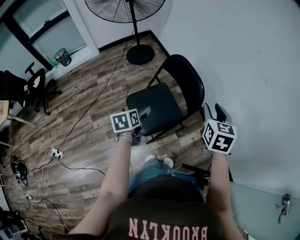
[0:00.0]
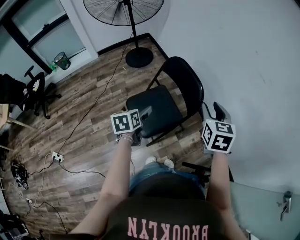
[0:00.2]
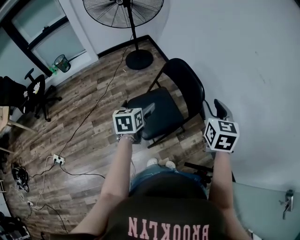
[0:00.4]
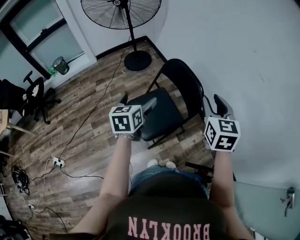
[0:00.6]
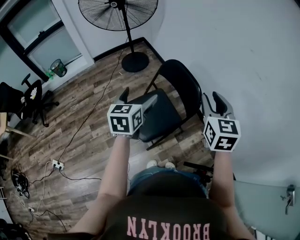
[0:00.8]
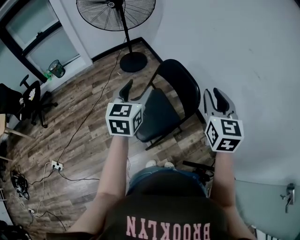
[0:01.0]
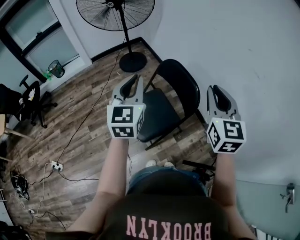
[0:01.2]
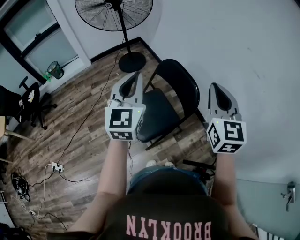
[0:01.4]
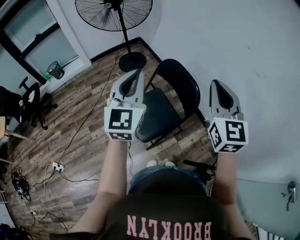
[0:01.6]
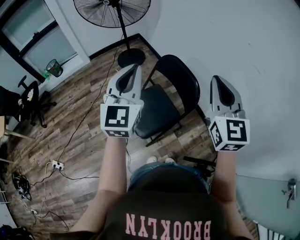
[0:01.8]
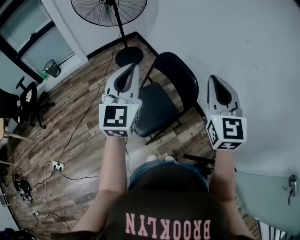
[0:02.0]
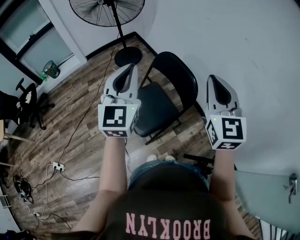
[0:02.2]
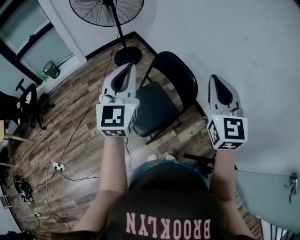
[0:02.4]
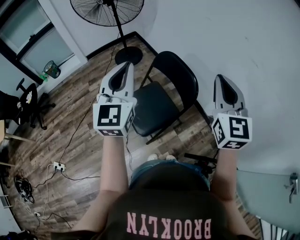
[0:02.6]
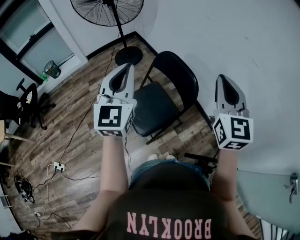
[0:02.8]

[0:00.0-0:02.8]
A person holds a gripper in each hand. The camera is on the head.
0:00.0 to 0:01.4: The right gripper heads upward, covering roughly 15 cm, and swivels about 30 degrees, while the left gripper goes some 25 cm upward, tilts its fingers roughly 40 degrees upward, and closes its fingers.
0:01.4 to 0:02.8: The grippers stay close to where they were, moving slightly.

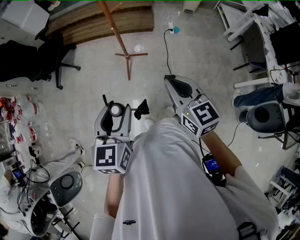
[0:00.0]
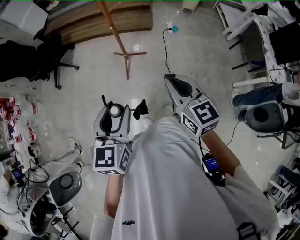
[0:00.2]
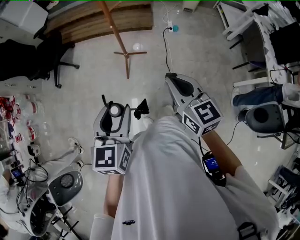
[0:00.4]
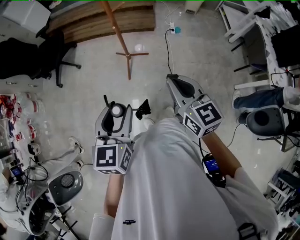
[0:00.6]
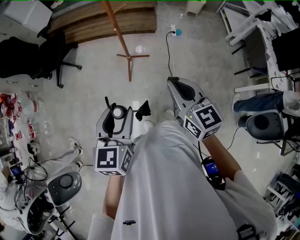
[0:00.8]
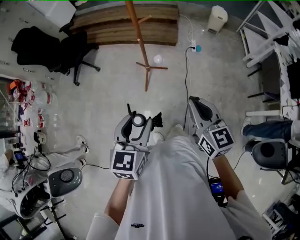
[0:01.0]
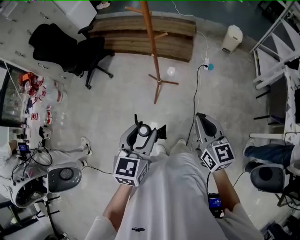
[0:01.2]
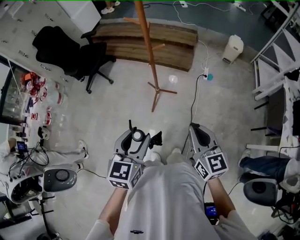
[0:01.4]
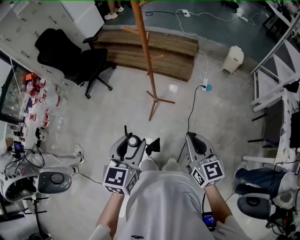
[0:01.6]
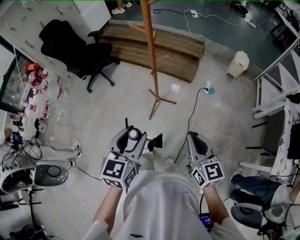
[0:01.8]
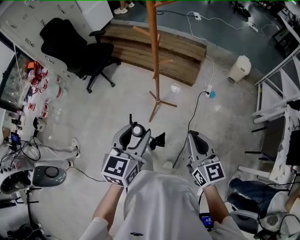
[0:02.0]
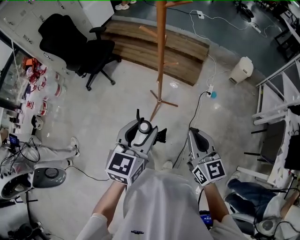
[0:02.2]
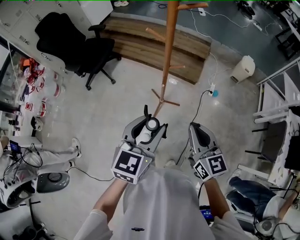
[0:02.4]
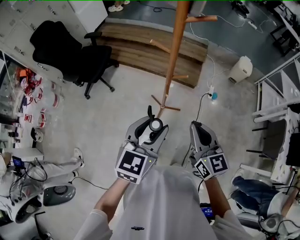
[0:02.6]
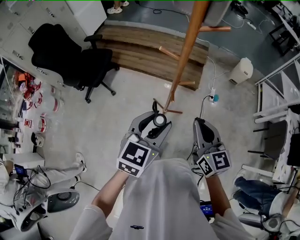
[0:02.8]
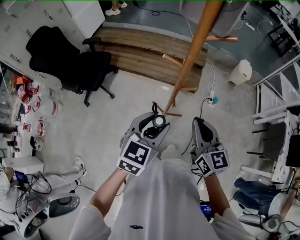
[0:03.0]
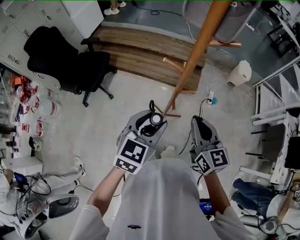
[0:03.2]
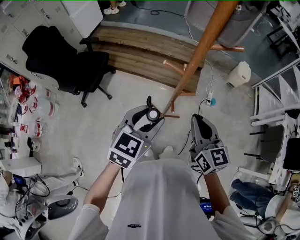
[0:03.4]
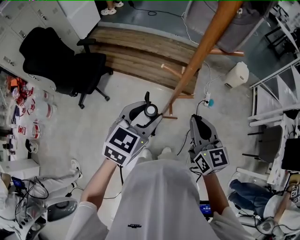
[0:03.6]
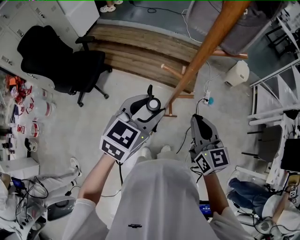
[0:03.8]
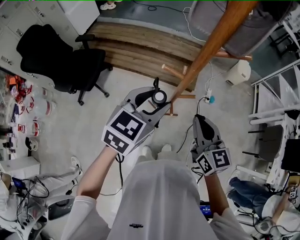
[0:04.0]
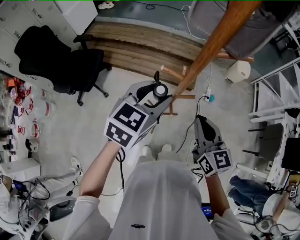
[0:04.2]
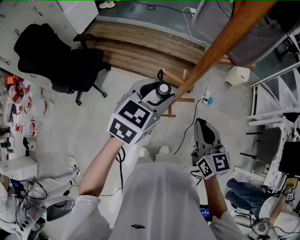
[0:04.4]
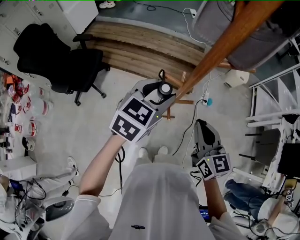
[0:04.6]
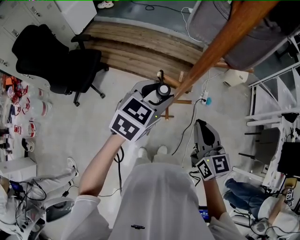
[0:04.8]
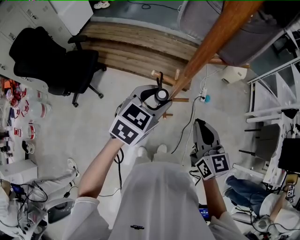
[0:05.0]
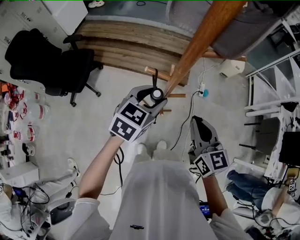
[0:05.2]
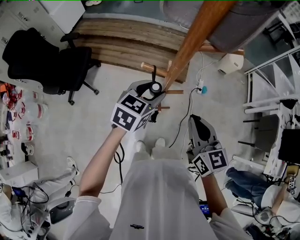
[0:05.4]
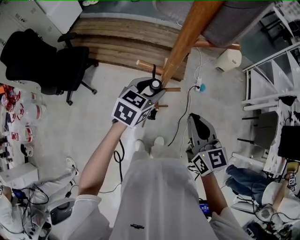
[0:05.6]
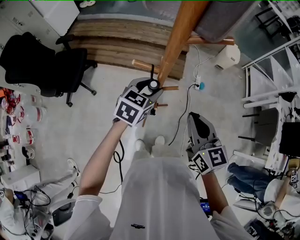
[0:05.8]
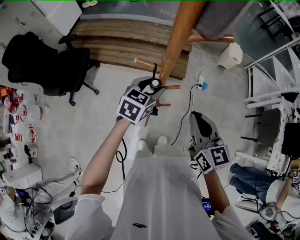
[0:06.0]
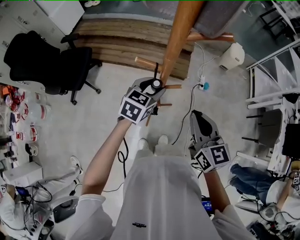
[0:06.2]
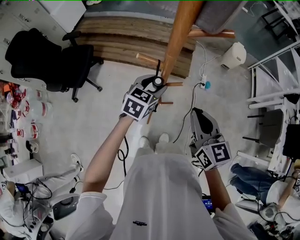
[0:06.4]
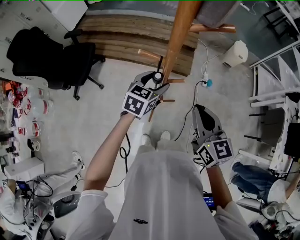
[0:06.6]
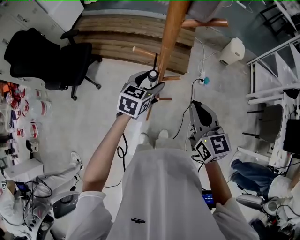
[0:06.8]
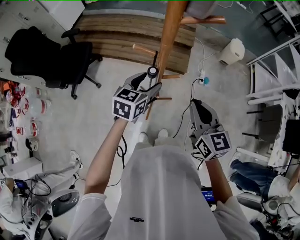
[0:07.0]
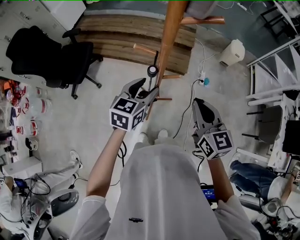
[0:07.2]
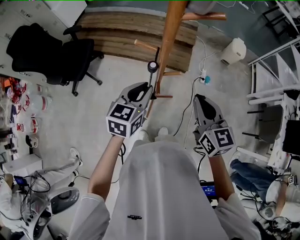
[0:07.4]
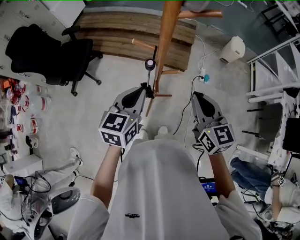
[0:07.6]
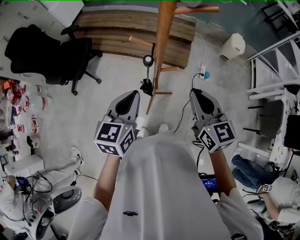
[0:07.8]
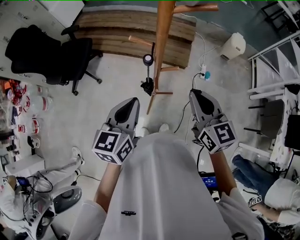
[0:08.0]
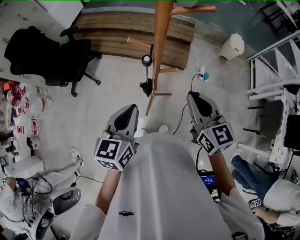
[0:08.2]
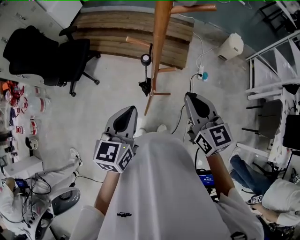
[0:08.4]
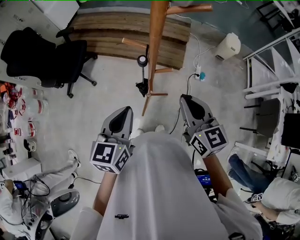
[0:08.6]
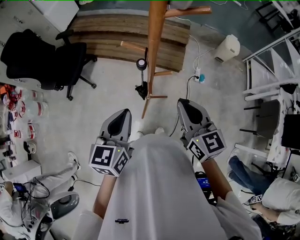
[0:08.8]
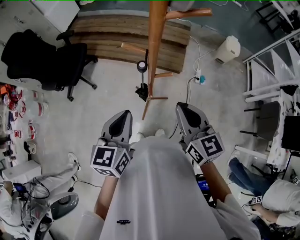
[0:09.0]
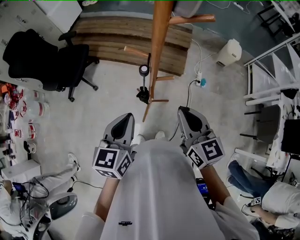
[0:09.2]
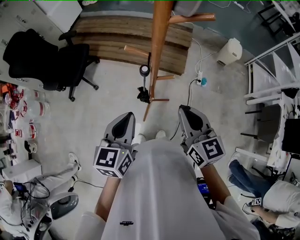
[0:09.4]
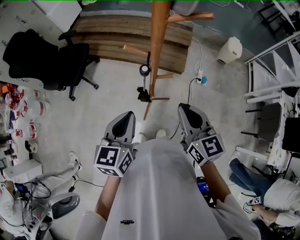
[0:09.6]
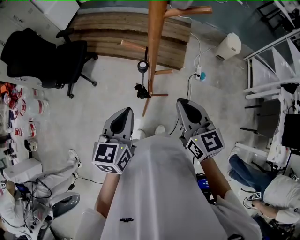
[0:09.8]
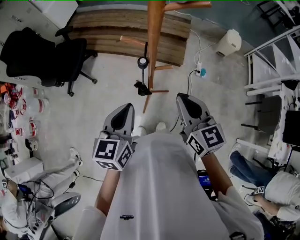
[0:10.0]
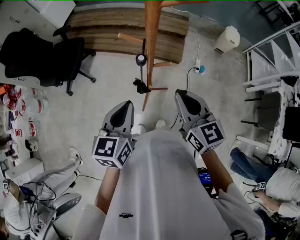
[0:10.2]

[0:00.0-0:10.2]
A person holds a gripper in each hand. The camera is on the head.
0:00.0 to 0:01.4: The right gripper goes about 10 cm to the right and forward. Meanwhile the left gripper heads forward and to the right, covering roughly 10 cm.
0:01.4 to 0:03.0: The left gripper heads forward, covering about 35 cm. The right gripper heads forward and to the left, covering approximately 35 cm.
0:03.0 to 0:04.4: The right gripper is displaced forward by about 10 cm, while the left gripper moves forward, approximately 15 cm.
0:04.4 to 0:05.8: The left gripper moves downward and to the right, some 15 cm.
0:05.8 to 0:07.2: The left gripper heads backward, covering roughly 5 cm.
0:07.2 to 0:08.8: The left gripper heads backward, upward and to the left, covering some 15 cm, and closes its fingers.
0:08.8 to 0:10.2: The grippers stay close to where they were, moving slightly.

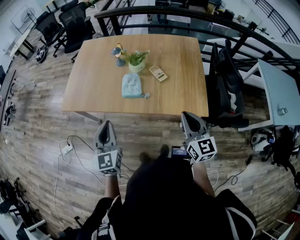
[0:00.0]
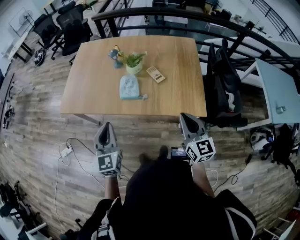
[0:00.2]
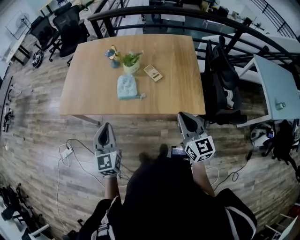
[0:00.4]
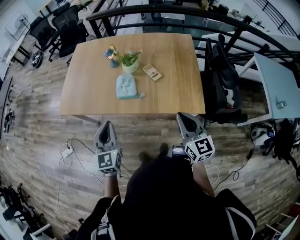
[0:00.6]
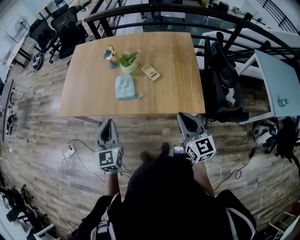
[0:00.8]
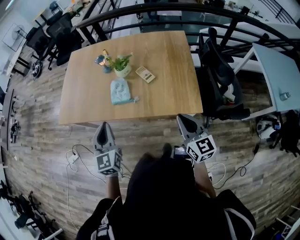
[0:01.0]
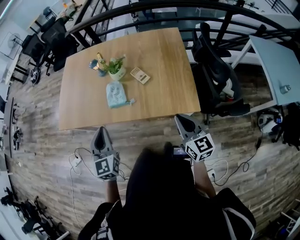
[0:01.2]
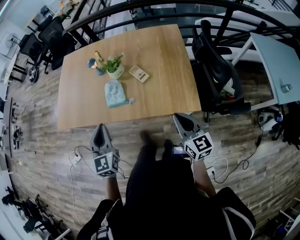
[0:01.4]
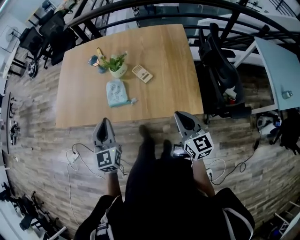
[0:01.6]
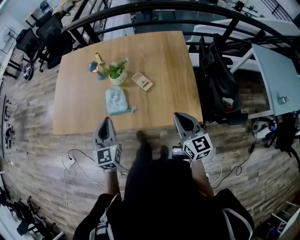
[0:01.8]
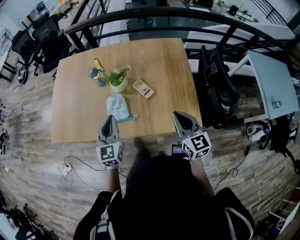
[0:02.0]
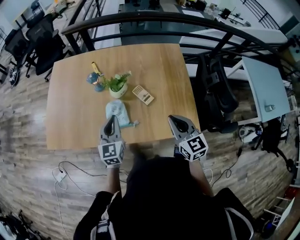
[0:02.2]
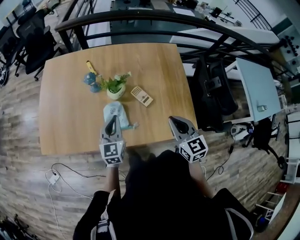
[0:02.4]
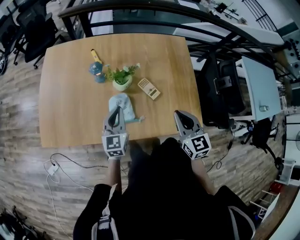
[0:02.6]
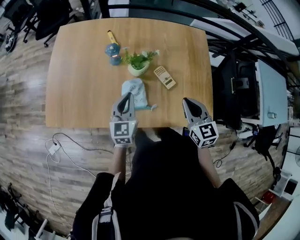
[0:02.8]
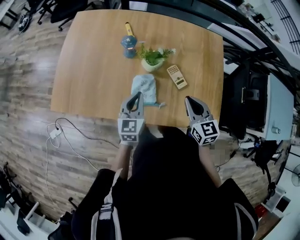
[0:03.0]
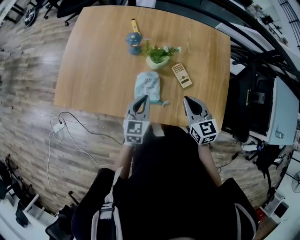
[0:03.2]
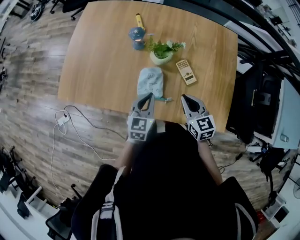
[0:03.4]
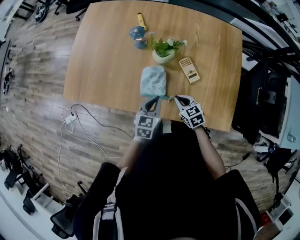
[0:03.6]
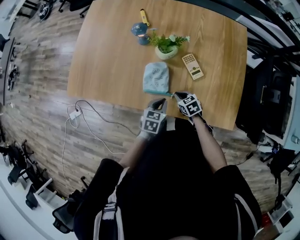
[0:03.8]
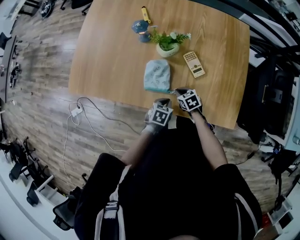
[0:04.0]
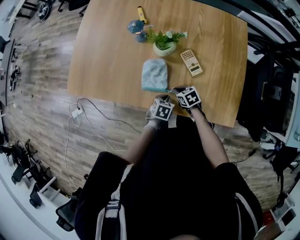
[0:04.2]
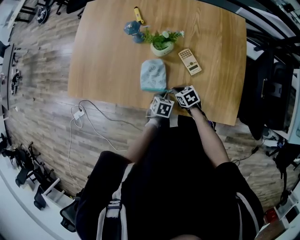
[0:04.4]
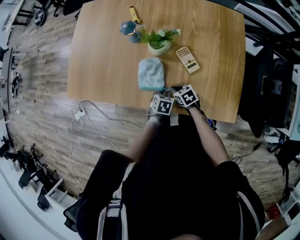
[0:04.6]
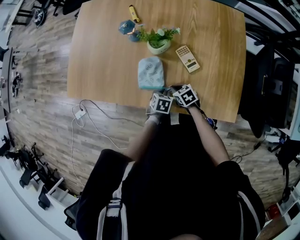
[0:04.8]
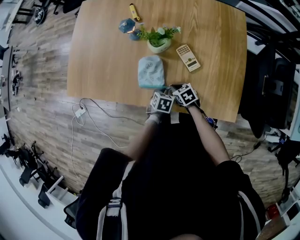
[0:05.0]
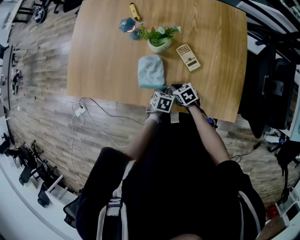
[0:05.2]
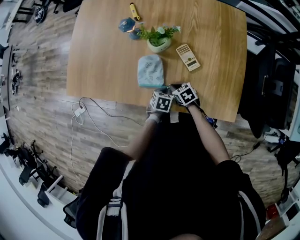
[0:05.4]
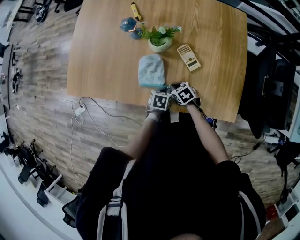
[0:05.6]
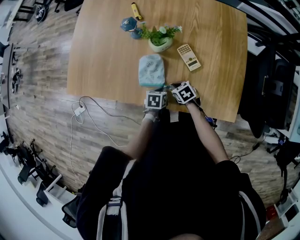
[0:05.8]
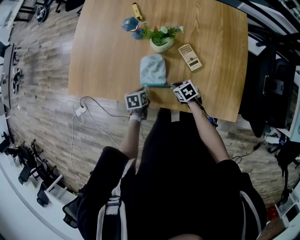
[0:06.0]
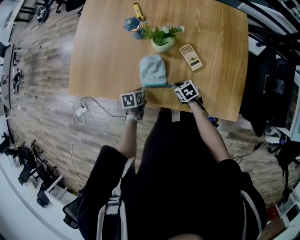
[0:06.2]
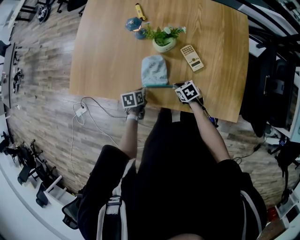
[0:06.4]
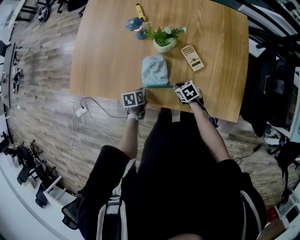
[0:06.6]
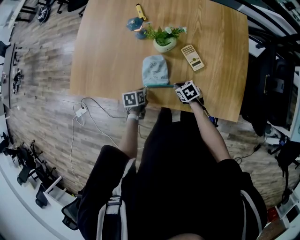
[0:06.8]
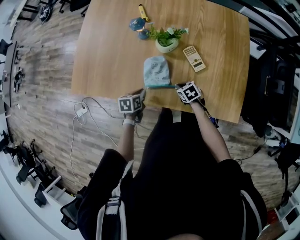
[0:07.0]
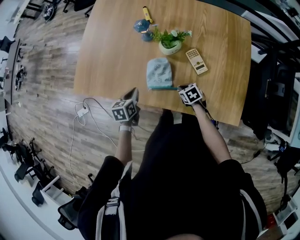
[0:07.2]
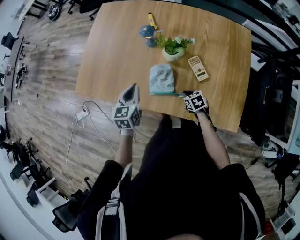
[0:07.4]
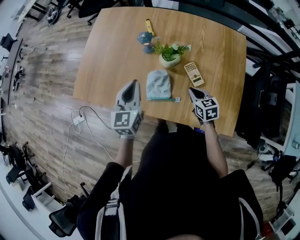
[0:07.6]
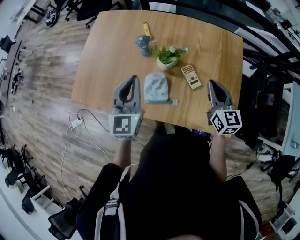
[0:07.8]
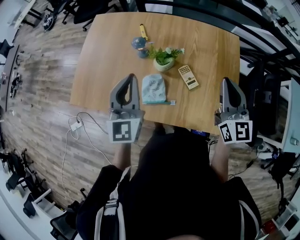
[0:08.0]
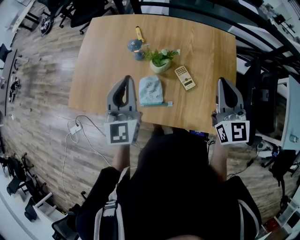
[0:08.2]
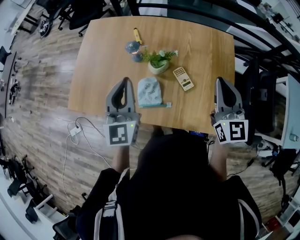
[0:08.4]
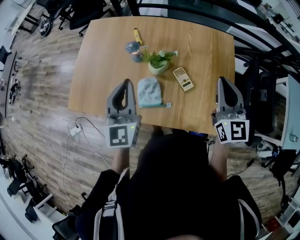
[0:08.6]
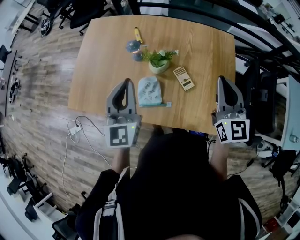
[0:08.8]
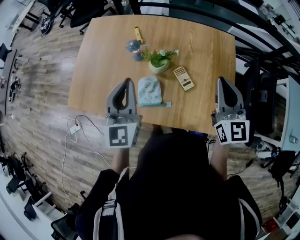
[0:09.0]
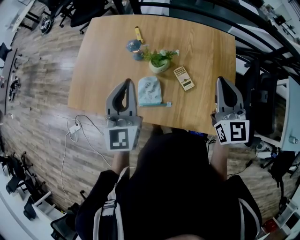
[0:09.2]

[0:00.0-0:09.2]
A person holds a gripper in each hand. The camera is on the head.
0:00.0 to 0:01.6: The left gripper is displaced to the right and forward by approximately 15 cm. The right gripper goes approximately 10 cm to the right and downward.
0:01.6 to 0:03.0: The right gripper goes approximately 25 cm forward and to the left; the left gripper heads forward, downward and to the left, covering approximately 25 cm, and swivels approximately 20 degrees.
0:03.0 to 0:04.6: The left gripper heads downward and to the right, covering about 25 cm, and tips its fingers downward by approximately 50 degrees. The right gripper goes roughly 30 cm downward, and rotates approximately 40 degrees.
0:04.6 to 0:06.2: The left gripper is displaced to the left by approximately 15 cm, and rotates some 30 degrees.
0:06.2 to 0:07.6: The left gripper shifts about 30 cm upward, and tilts its fingers roughly 50 degrees upward. The right gripper travels upward and to the right by roughly 15 cm, and turns by about 30 degrees.
0:07.6 to 0:09.2: The right gripper travels upward by approximately 30 cm, and tips its fingers upward by about 40 degrees. The left gripper is displaced upward by some 15 cm.

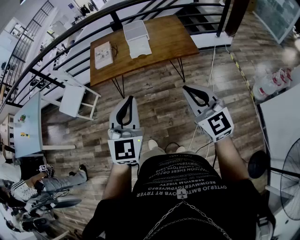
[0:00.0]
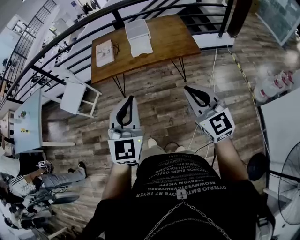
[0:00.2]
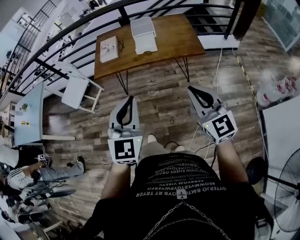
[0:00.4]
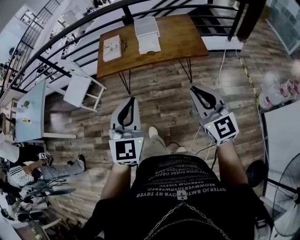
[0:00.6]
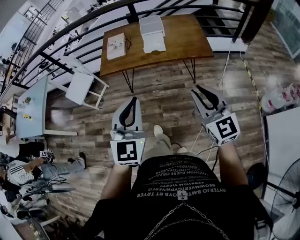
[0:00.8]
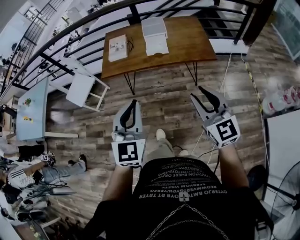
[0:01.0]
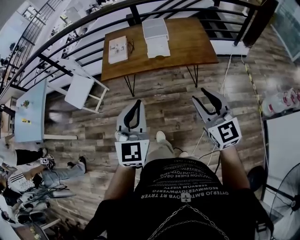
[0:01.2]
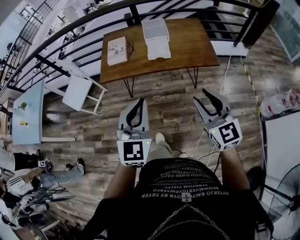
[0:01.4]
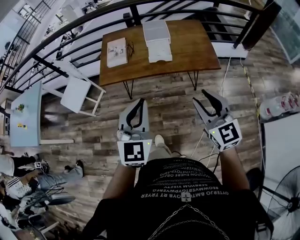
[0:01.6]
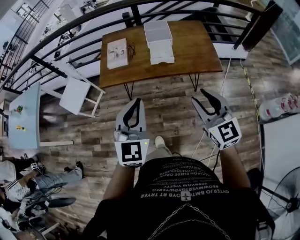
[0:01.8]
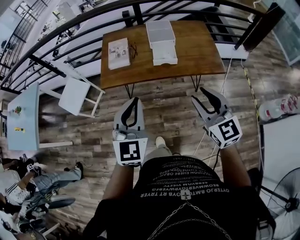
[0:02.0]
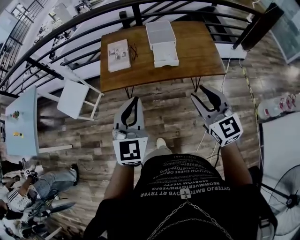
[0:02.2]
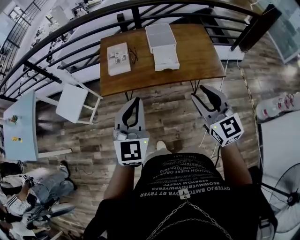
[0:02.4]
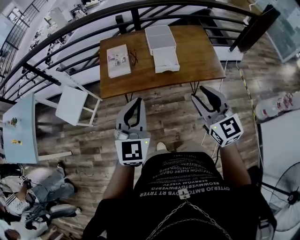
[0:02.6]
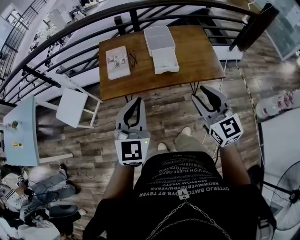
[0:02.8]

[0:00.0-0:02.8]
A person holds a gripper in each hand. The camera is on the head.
0:00.0 to 0:01.4: The grippers both shift forward by roughly 10 cm. The right gripper opens.
0:01.4 to 0:02.8: The grippers both shift forward and to the left by about 20 cm.
